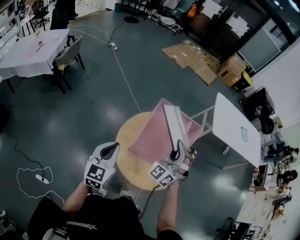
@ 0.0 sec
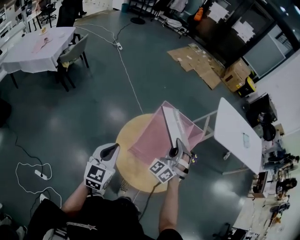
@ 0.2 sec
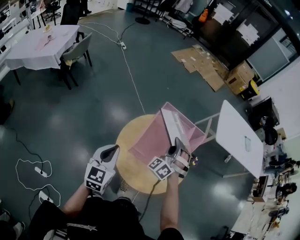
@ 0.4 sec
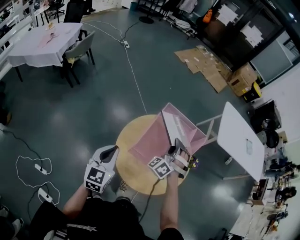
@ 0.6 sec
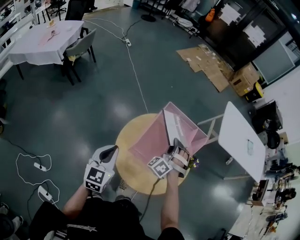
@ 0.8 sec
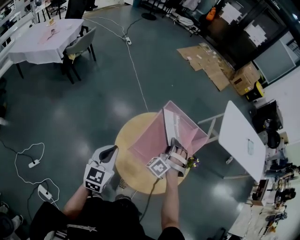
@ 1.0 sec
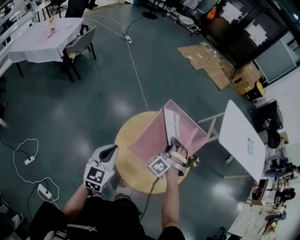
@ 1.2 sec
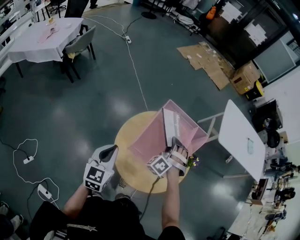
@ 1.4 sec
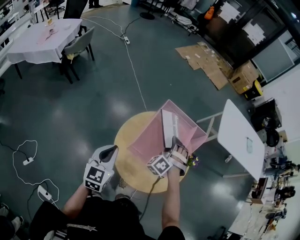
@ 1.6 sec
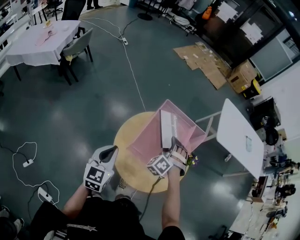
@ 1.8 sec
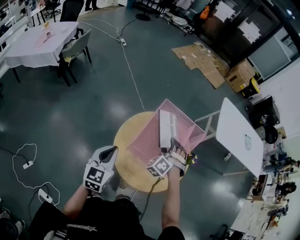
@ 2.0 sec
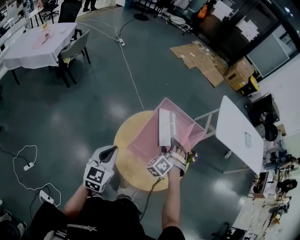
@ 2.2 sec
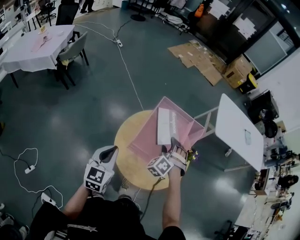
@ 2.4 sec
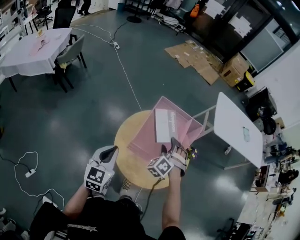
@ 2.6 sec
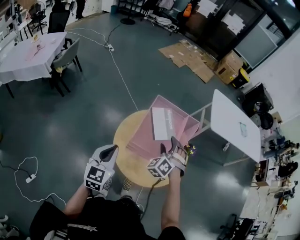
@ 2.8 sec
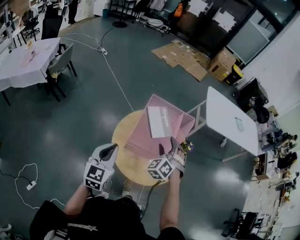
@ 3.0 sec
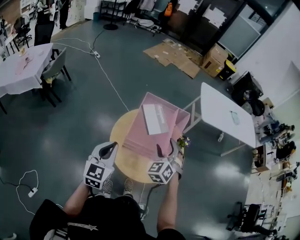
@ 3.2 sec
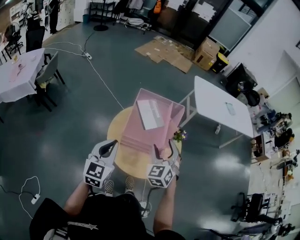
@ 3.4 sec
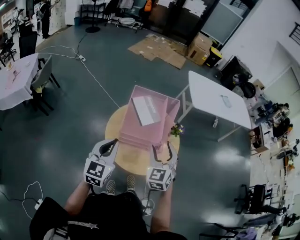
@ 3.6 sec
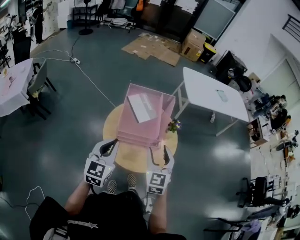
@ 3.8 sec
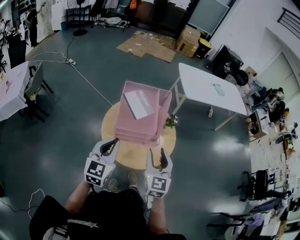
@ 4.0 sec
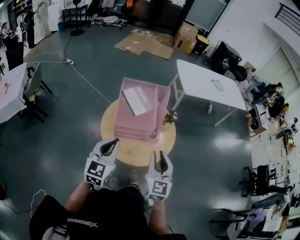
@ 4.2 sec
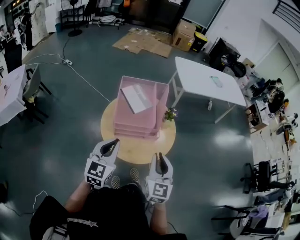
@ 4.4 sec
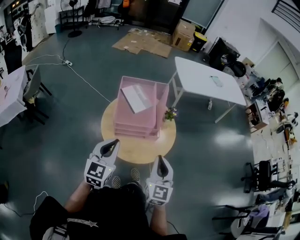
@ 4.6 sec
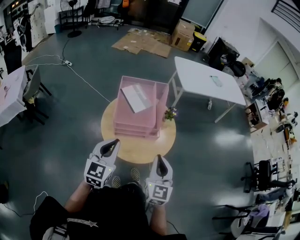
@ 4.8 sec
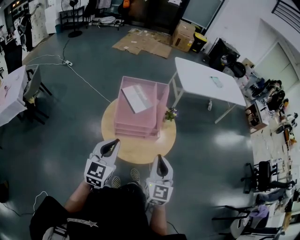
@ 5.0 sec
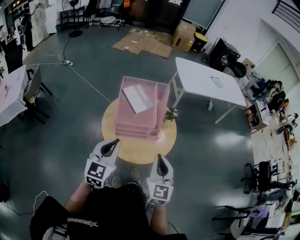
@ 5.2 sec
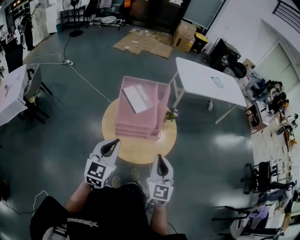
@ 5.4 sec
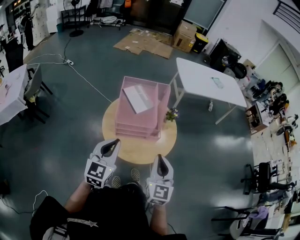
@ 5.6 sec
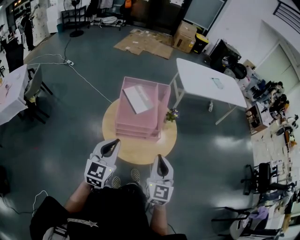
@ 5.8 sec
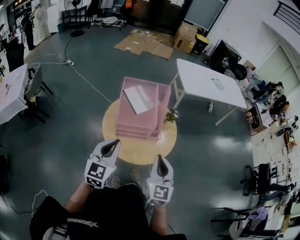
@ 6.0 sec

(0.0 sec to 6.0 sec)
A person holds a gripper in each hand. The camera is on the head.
0.0 sec - 1.6 sec: The right gripper is displaced downward and forward by some 15 cm, swivels approximately 40 degrees, and opens its fingers.
1.6 sec - 3.0 sec: The right gripper goes roughly 10 cm backward and upward, rotates approximately 20 degrees, and opens its fingers.
3.0 sec - 4.4 sec: The right gripper shifts some 25 cm backward and to the right, rolls clockwise, seen from behind, by about 60 degrees, and closes its fingers; the left gripper moves to the right, approximately 10 cm, and turns by roughly 20 degrees.
4.4 sec - 6.0 sec: Neither gripper changes place.

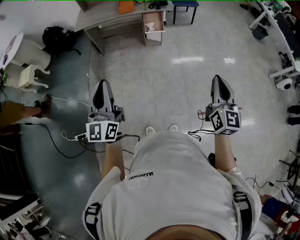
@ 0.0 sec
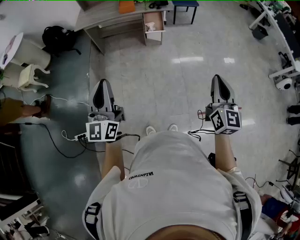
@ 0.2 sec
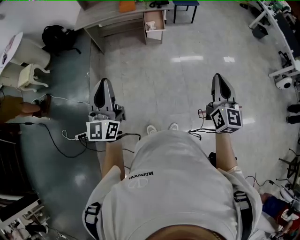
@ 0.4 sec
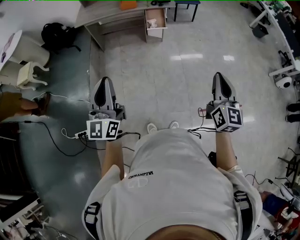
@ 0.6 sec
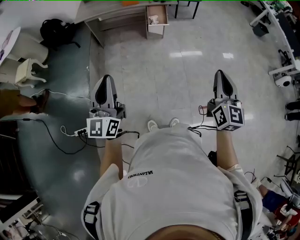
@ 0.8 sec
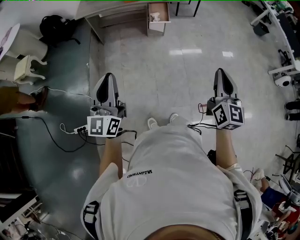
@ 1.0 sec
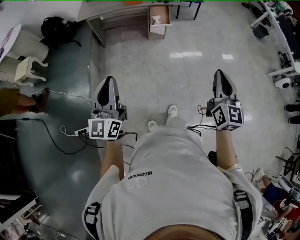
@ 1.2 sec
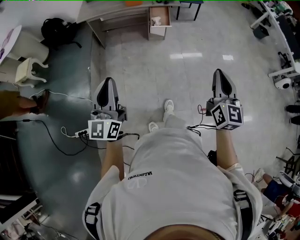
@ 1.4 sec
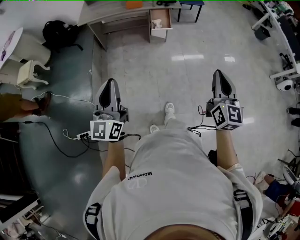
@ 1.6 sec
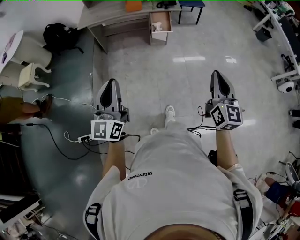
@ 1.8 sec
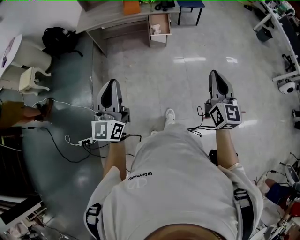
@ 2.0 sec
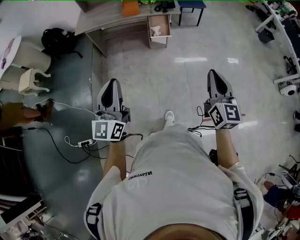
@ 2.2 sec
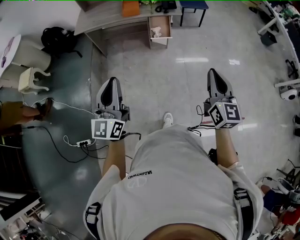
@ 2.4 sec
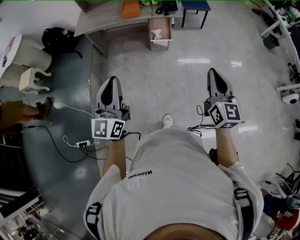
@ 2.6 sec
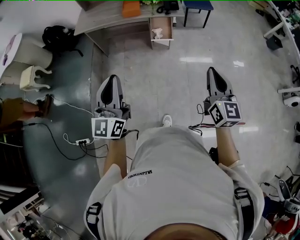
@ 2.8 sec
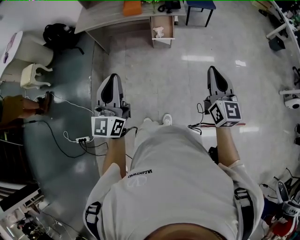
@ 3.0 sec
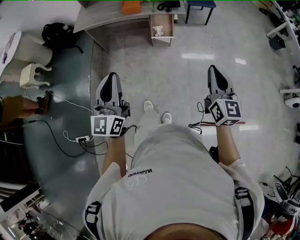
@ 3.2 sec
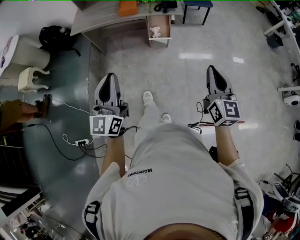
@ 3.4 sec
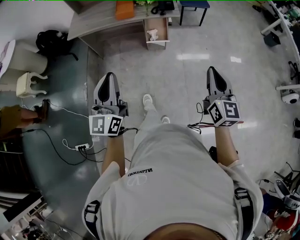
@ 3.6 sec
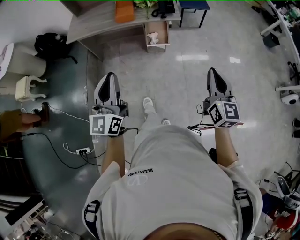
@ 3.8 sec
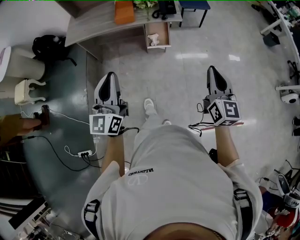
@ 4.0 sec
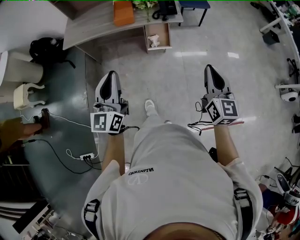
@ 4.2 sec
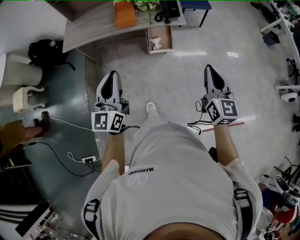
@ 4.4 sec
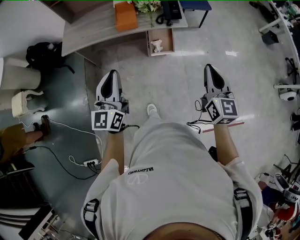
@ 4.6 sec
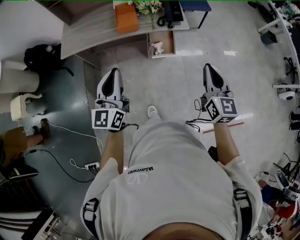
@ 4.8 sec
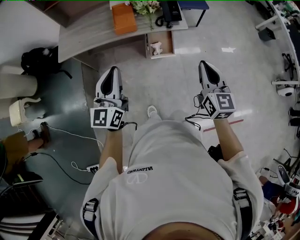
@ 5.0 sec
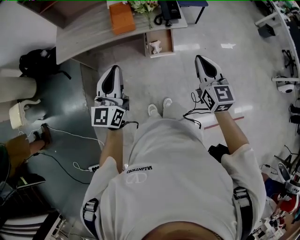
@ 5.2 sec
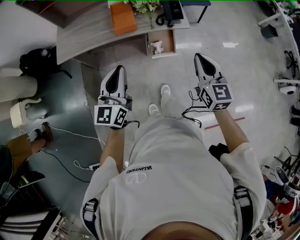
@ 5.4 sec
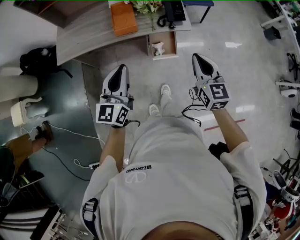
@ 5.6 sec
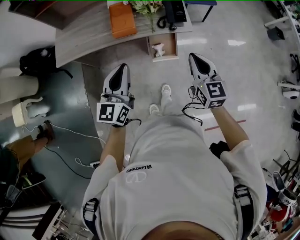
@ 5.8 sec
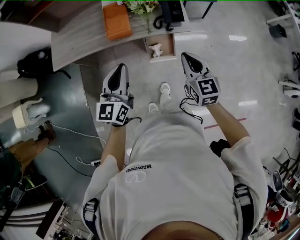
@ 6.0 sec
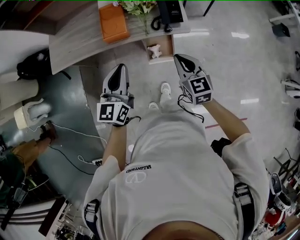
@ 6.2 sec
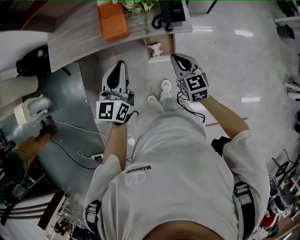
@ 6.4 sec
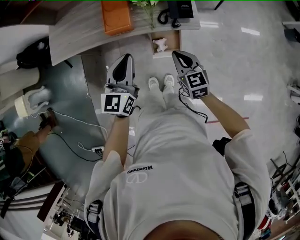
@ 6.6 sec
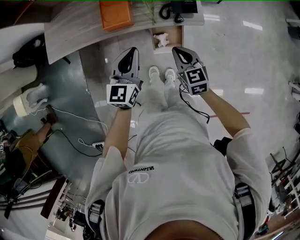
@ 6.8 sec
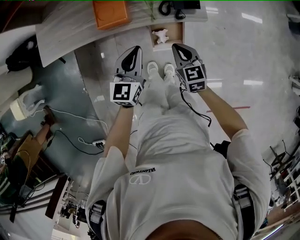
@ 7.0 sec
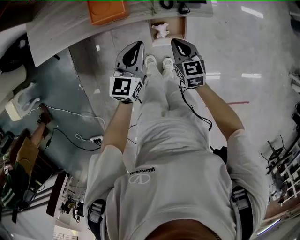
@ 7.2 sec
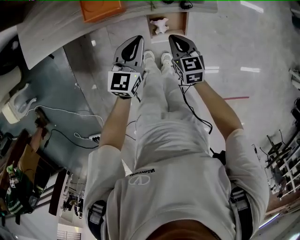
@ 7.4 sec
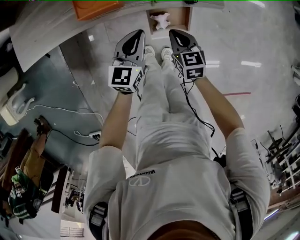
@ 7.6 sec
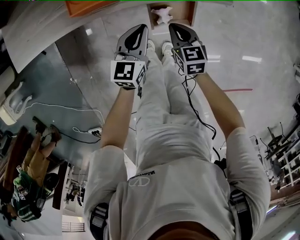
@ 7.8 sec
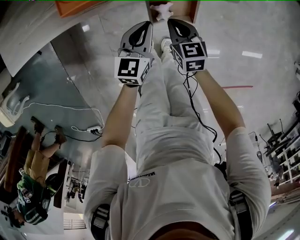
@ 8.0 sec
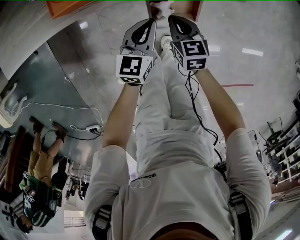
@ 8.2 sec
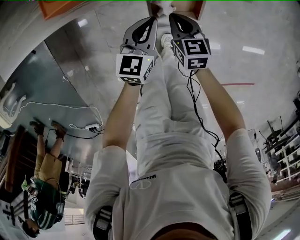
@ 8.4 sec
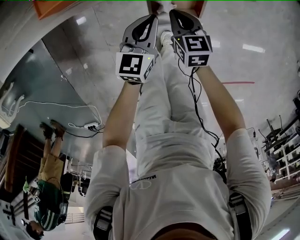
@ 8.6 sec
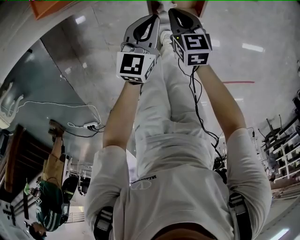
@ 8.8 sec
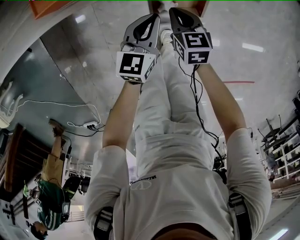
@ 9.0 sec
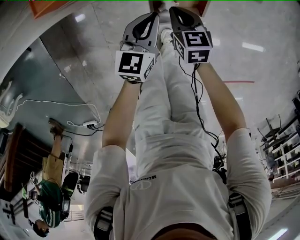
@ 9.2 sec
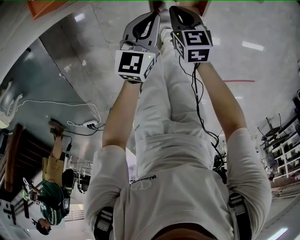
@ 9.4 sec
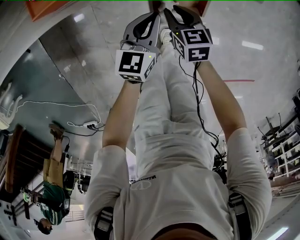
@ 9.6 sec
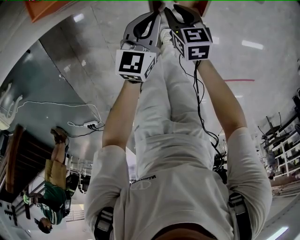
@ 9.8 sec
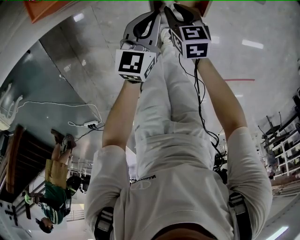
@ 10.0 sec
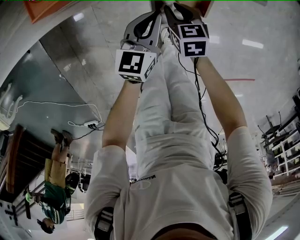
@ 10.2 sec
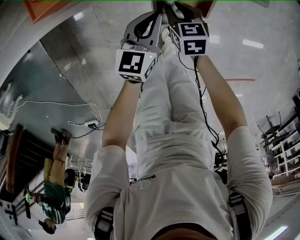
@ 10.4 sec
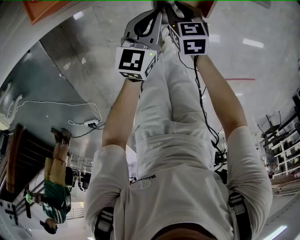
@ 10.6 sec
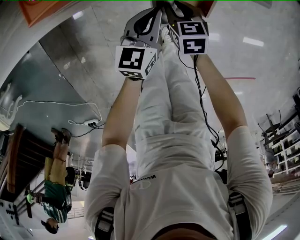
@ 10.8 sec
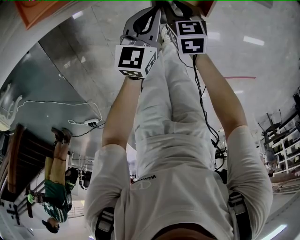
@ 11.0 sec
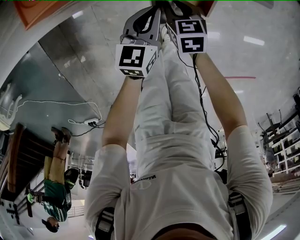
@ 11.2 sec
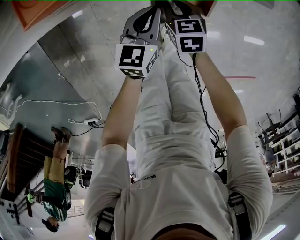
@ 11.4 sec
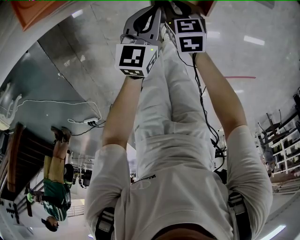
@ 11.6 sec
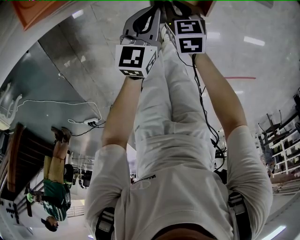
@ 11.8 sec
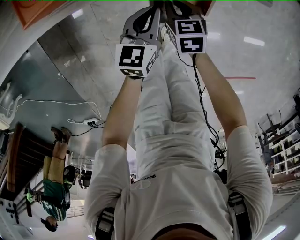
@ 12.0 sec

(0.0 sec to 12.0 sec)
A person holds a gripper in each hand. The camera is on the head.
0.0 sec - 1.6 sec: Both grippers move to the left, about 5 cm.
1.6 sec - 3.0 sec: The left gripper goes roughly 25 cm forward and to the right; the right gripper is displaced forward by roughly 25 cm.
3.0 sec - 4.4 sec: The two grippers go some 20 cm forward.
4.4 sec - 6.0 sec: The right gripper travels forward and downward by roughly 30 cm. Meanwhile the left gripper heads forward, covering about 25 cm.
6.0 sec - 7.6 sec: The right gripper shifts approximately 35 cm downward, and changes its angle by some 20 degrees, while the left gripper moves downward and forward, approximately 35 cm, and changes its angle by some 20 degrees.
7.6 sec - 9.0 sec: Both grippers move downward, approximately 15 cm.
9.0 sec - 10.4 sec: The right gripper opens up.
10.4 sec - 12.0 sec: The grippers move only a little.

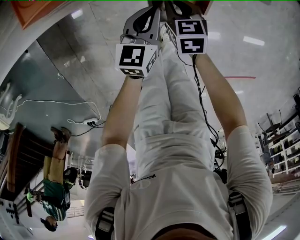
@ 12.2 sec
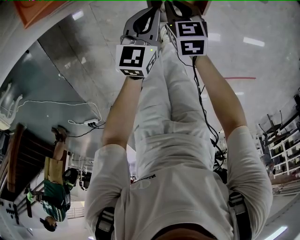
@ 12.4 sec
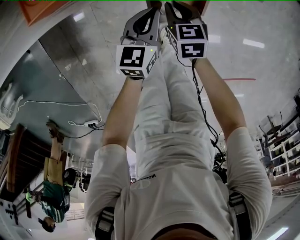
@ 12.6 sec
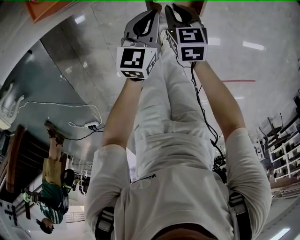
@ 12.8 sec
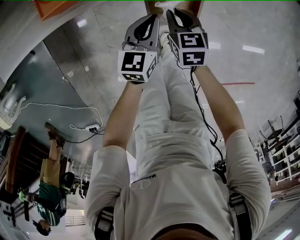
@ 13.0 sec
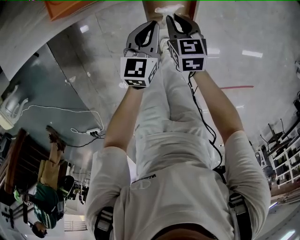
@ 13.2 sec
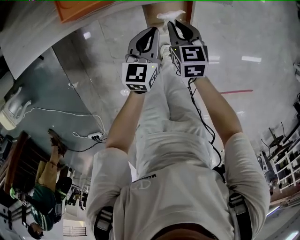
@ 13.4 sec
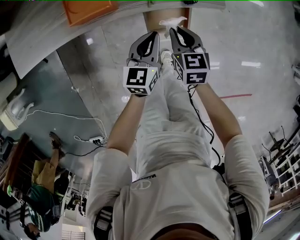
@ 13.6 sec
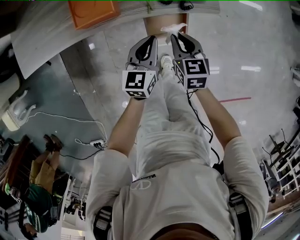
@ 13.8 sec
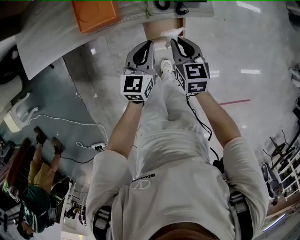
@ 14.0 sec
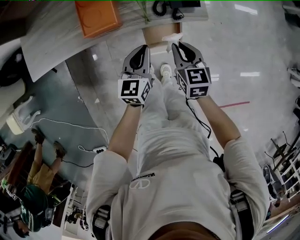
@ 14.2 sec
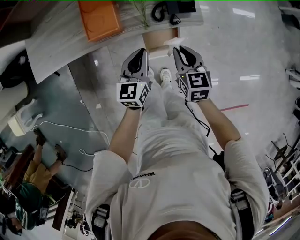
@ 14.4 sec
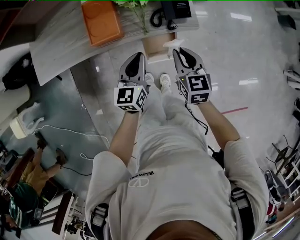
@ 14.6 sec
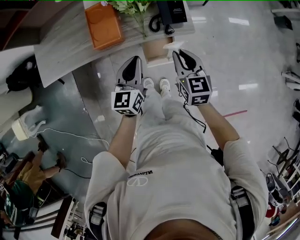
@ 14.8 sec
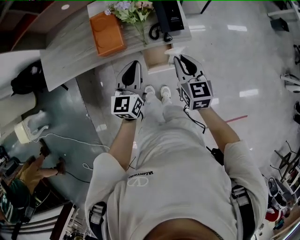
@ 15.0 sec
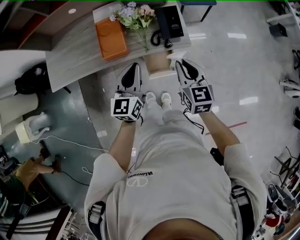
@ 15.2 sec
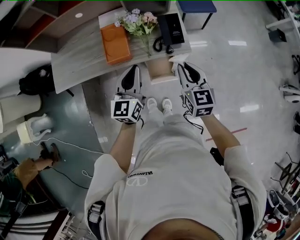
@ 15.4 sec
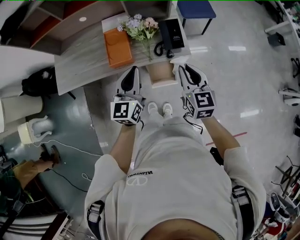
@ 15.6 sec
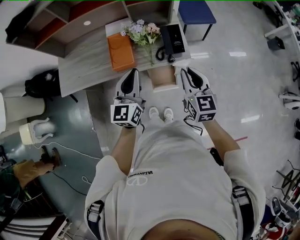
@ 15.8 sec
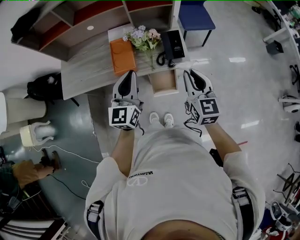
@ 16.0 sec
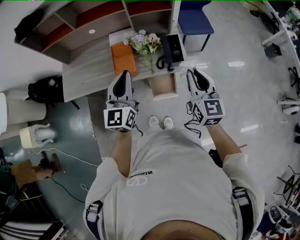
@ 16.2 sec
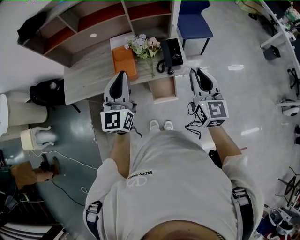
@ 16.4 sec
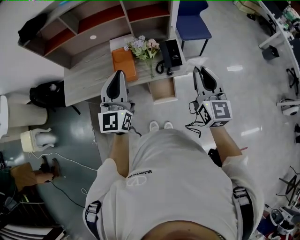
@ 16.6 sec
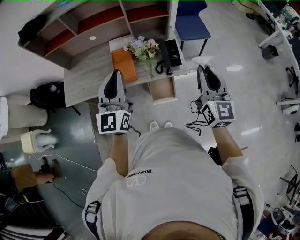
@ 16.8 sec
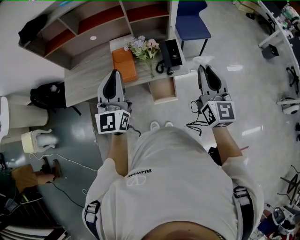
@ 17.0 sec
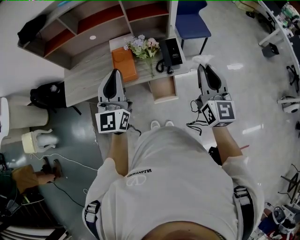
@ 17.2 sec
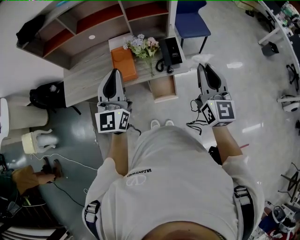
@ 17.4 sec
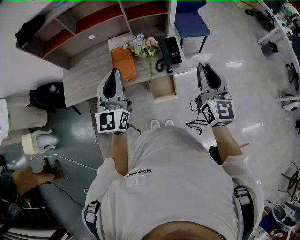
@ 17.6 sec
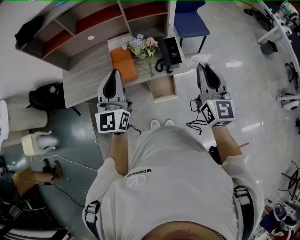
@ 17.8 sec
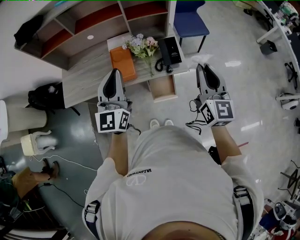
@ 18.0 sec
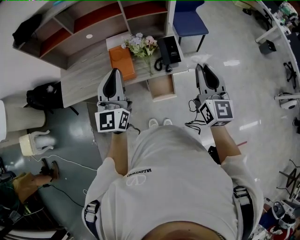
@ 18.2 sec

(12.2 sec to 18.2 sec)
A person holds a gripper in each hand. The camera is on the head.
12.2 sec - 13.8 sec: Both grippers move upward, roughly 20 cm.
13.8 sec - 15.2 sec: The two grippers go about 25 cm upward.
15.2 sec - 16.6 sec: Both grippers travel together upward, some 20 cm. The left gripper rotates some 20 degrees. The right gripper turns by about 20 degrees.
16.6 sec - 18.2 sec: The grippers move only a little.
